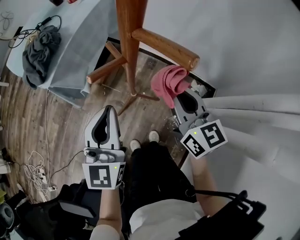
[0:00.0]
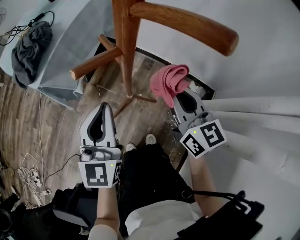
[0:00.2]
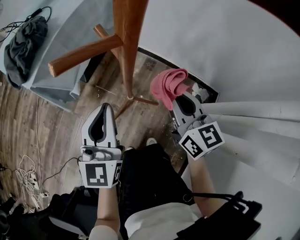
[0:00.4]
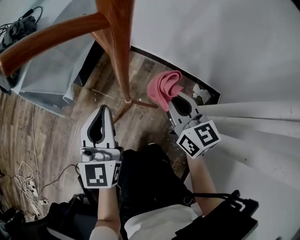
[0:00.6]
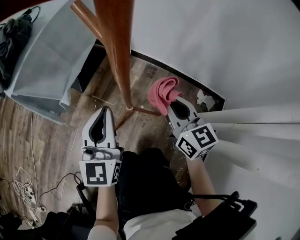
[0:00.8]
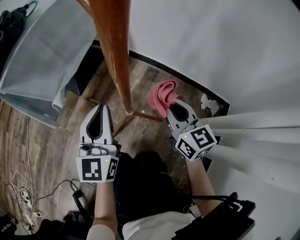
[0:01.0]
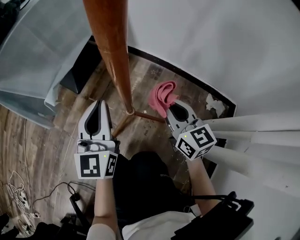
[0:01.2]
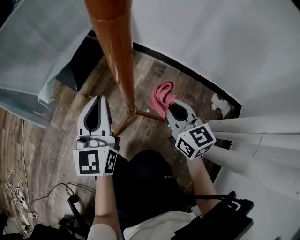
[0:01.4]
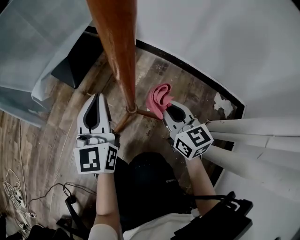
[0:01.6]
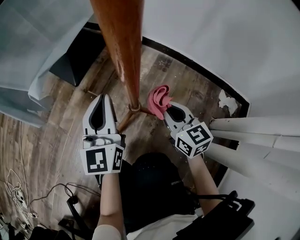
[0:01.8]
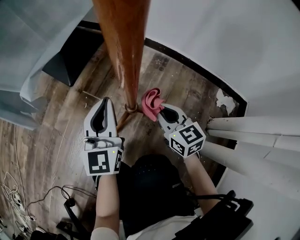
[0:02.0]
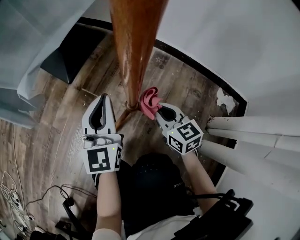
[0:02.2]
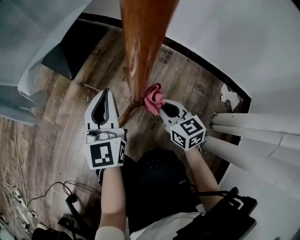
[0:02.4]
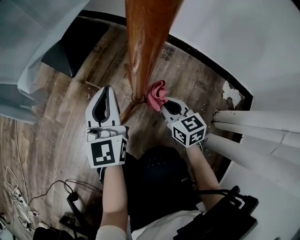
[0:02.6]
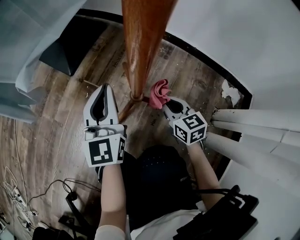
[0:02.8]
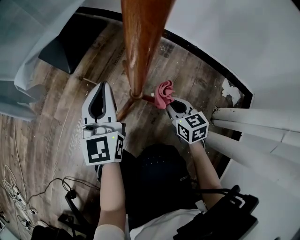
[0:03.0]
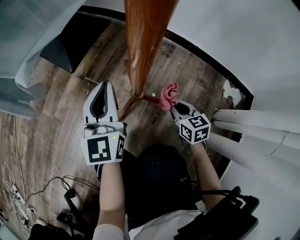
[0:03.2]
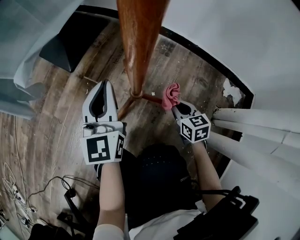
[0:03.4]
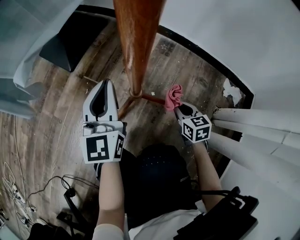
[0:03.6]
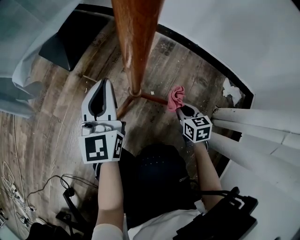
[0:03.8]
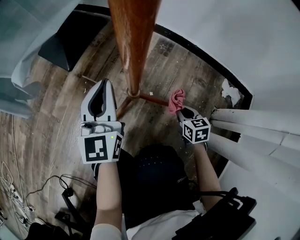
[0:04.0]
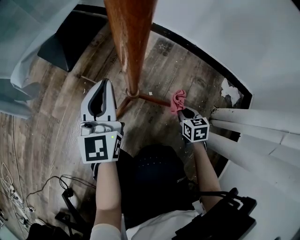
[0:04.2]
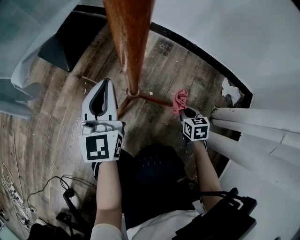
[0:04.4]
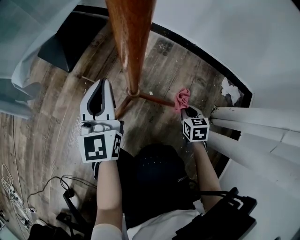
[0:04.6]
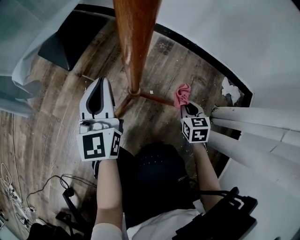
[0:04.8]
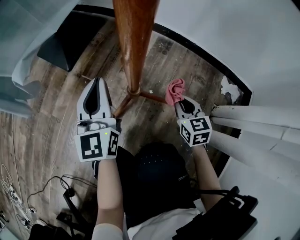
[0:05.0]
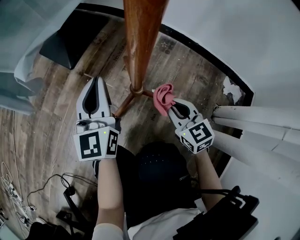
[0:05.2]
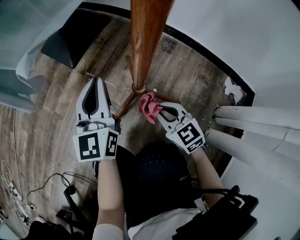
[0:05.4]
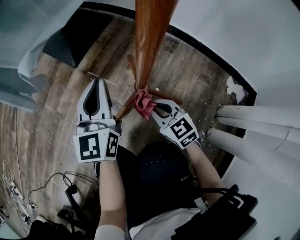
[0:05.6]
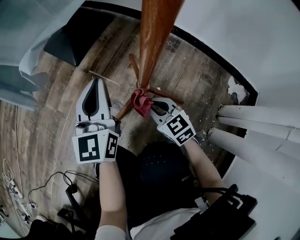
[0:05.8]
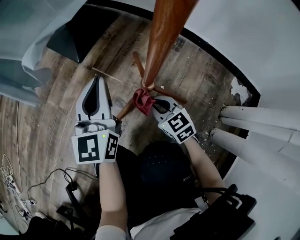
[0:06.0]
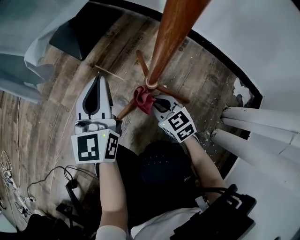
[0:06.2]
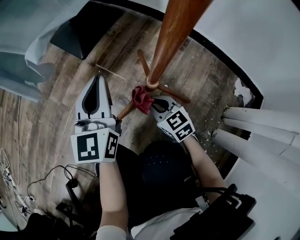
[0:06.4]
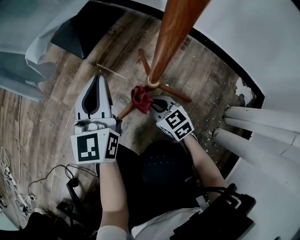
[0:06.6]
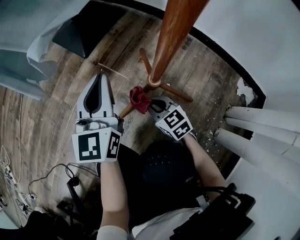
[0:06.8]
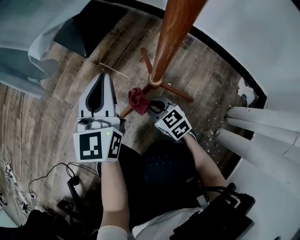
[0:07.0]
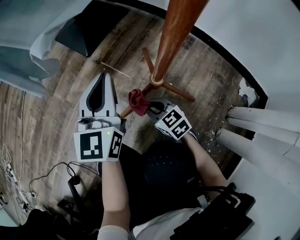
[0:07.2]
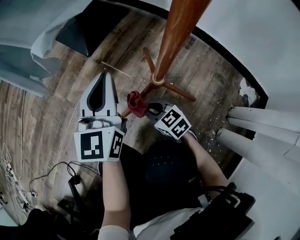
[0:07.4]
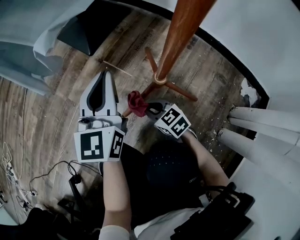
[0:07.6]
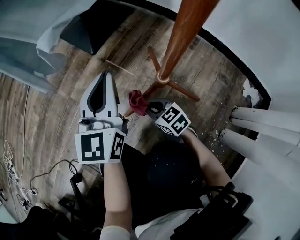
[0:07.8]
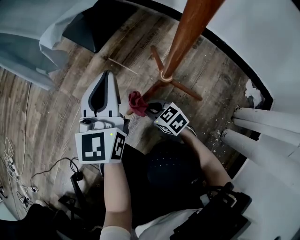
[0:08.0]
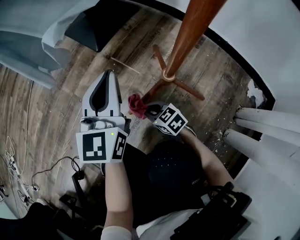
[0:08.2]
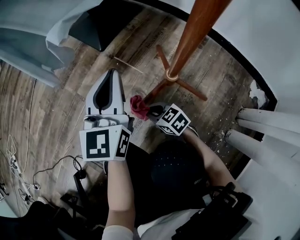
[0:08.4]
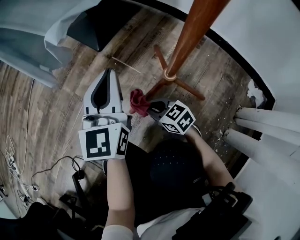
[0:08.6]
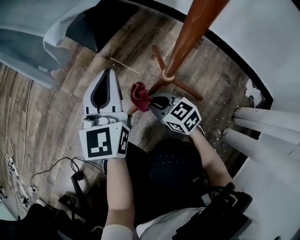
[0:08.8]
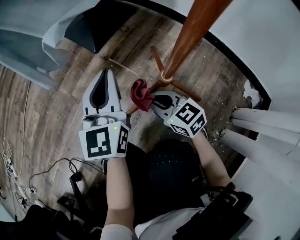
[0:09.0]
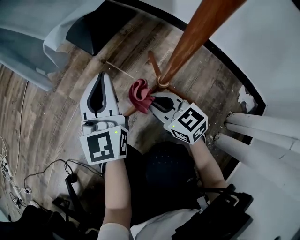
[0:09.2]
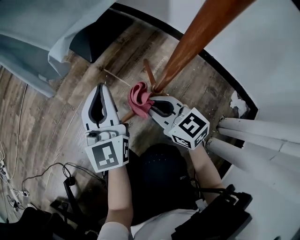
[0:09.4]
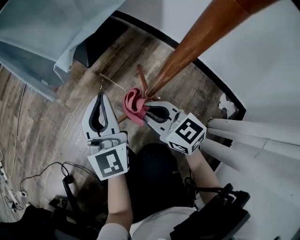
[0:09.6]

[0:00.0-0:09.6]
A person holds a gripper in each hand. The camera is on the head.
0:00.0 to 0:01.6: The grippers both shift downward by approximately 40 cm.
0:01.6 to 0:03.2: The left gripper heads downward, covering roughly 5 cm, while the right gripper travels downward by approximately 20 cm, and changes its angle by about 20 degrees.
0:03.2 to 0:04.8: The right gripper heads to the right, covering some 5 cm.
0:04.8 to 0:06.4: The left gripper travels to the left by approximately 5 cm; the right gripper goes roughly 20 cm to the left, and rotates some 40 degrees.
0:06.4 to 0:08.0: The right gripper is displaced to the left by some 10 cm.
0:08.0 to 0:09.6: The left gripper travels upward by about 5 cm, while the right gripper shifts roughly 25 cm upward.

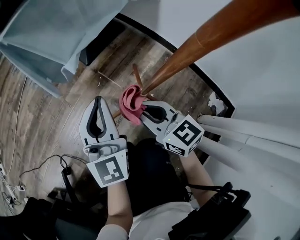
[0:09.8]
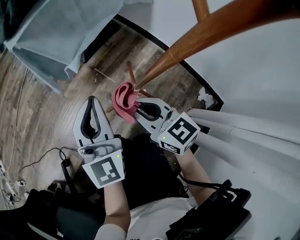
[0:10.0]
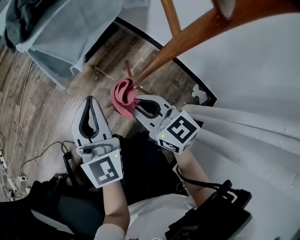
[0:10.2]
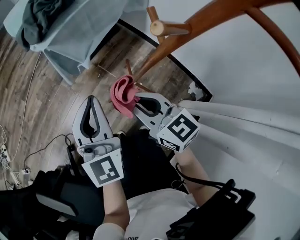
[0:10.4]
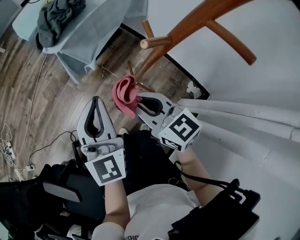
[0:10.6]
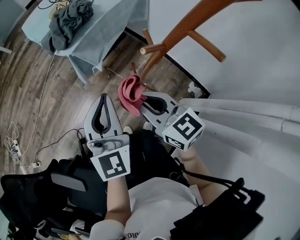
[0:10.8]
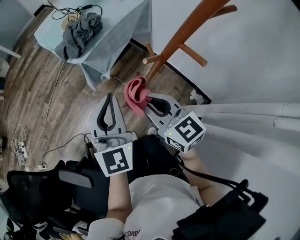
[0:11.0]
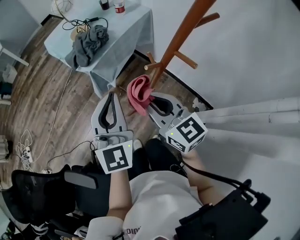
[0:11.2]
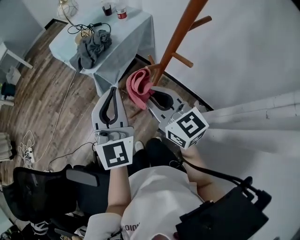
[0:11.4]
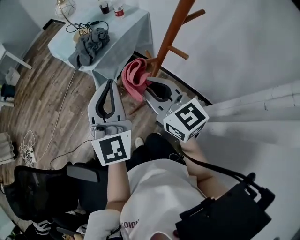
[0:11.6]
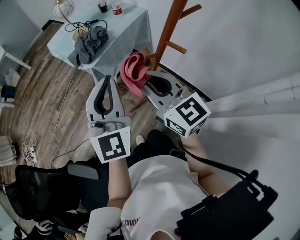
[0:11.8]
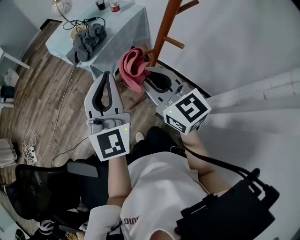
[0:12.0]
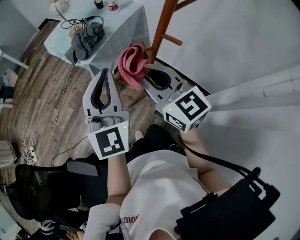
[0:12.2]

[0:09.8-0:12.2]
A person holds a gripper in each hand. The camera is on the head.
0:09.8 to 0:11.0: Both grippers travel together upward, approximately 40 cm.
0:11.0 to 0:12.2: The grippers both shift upward by roughly 15 cm.

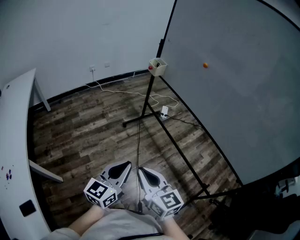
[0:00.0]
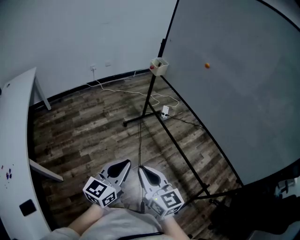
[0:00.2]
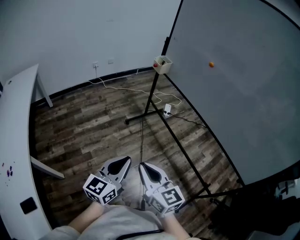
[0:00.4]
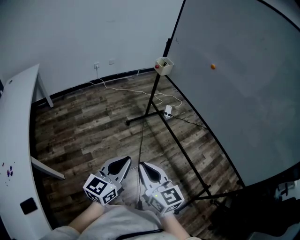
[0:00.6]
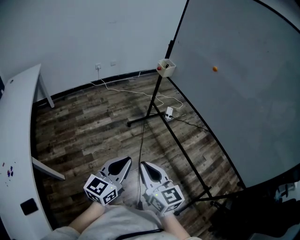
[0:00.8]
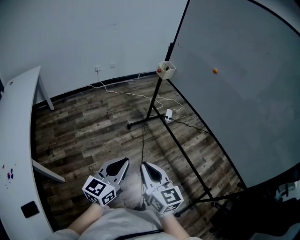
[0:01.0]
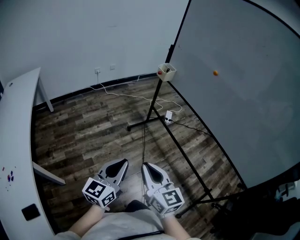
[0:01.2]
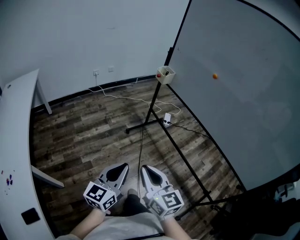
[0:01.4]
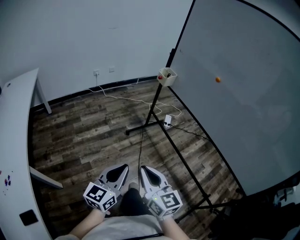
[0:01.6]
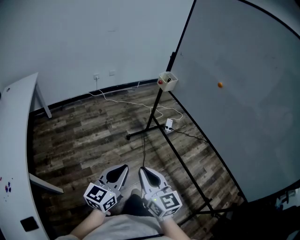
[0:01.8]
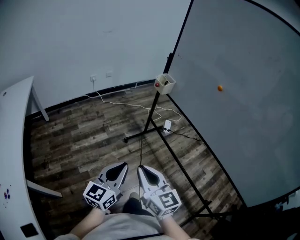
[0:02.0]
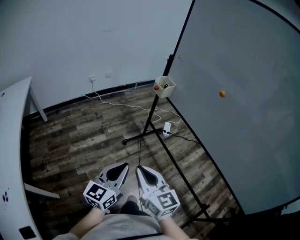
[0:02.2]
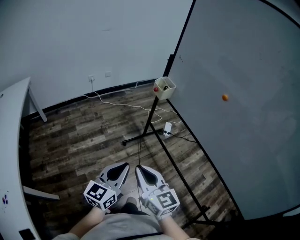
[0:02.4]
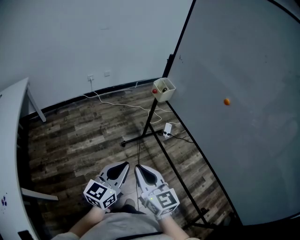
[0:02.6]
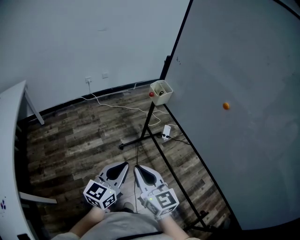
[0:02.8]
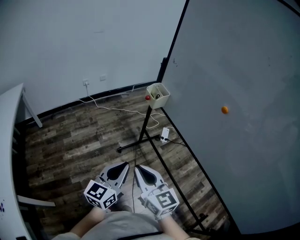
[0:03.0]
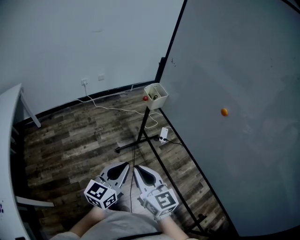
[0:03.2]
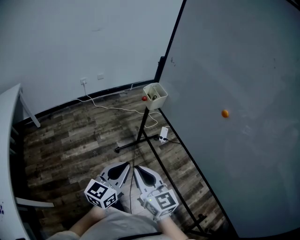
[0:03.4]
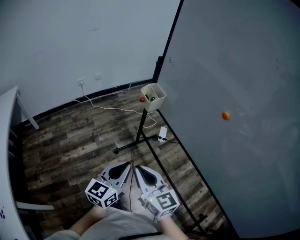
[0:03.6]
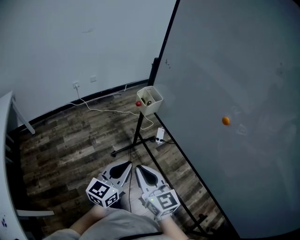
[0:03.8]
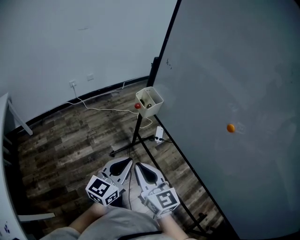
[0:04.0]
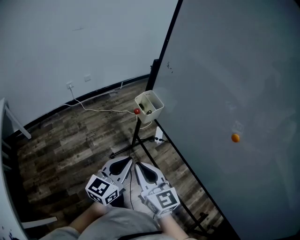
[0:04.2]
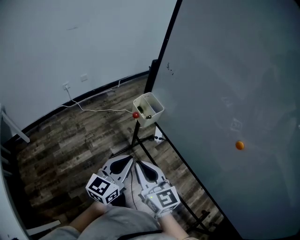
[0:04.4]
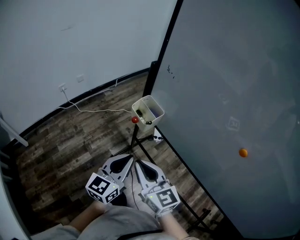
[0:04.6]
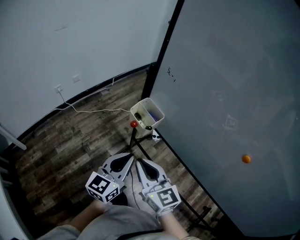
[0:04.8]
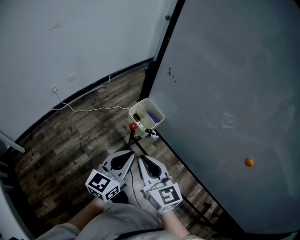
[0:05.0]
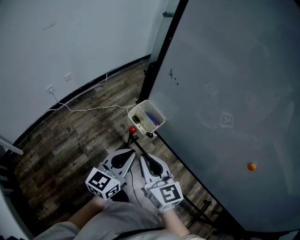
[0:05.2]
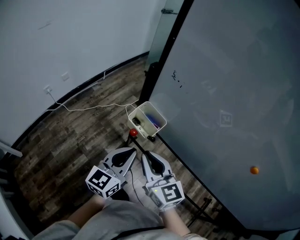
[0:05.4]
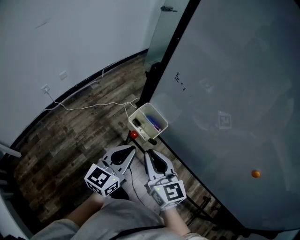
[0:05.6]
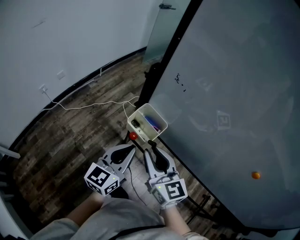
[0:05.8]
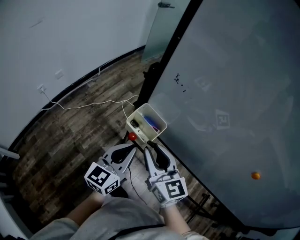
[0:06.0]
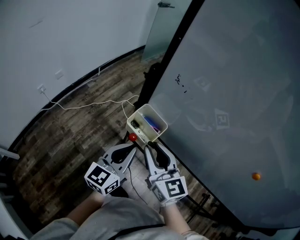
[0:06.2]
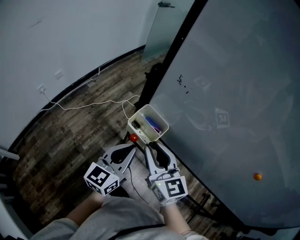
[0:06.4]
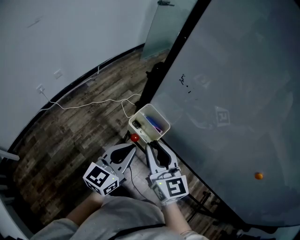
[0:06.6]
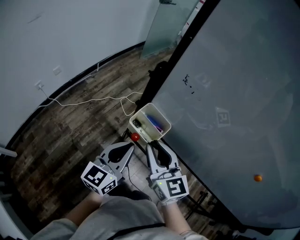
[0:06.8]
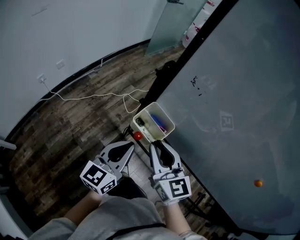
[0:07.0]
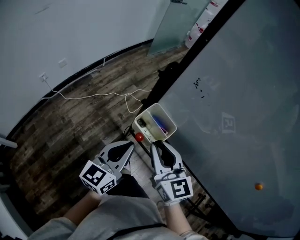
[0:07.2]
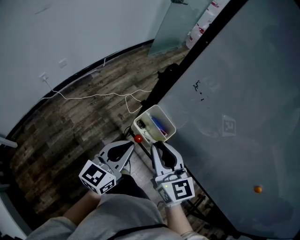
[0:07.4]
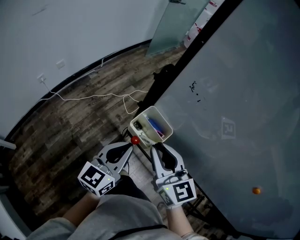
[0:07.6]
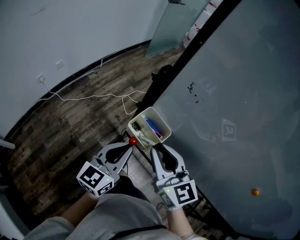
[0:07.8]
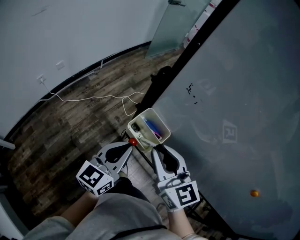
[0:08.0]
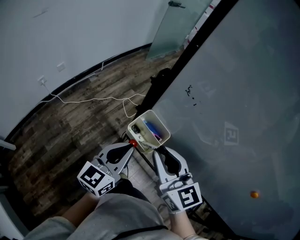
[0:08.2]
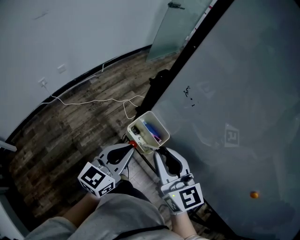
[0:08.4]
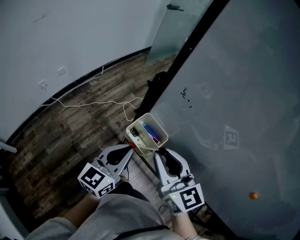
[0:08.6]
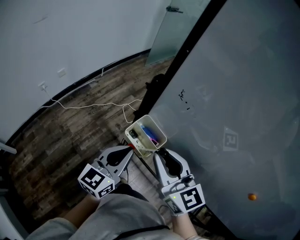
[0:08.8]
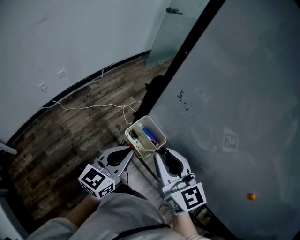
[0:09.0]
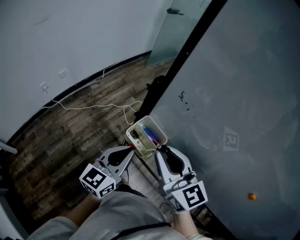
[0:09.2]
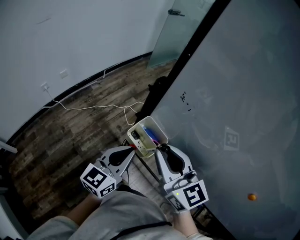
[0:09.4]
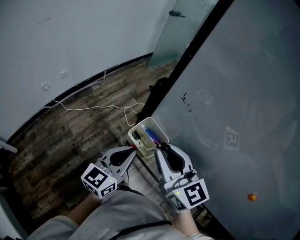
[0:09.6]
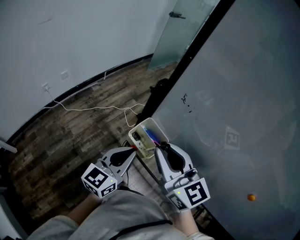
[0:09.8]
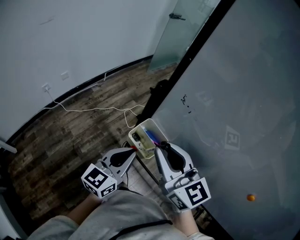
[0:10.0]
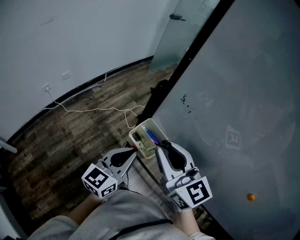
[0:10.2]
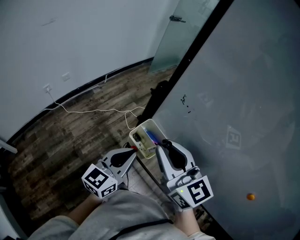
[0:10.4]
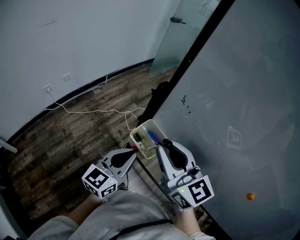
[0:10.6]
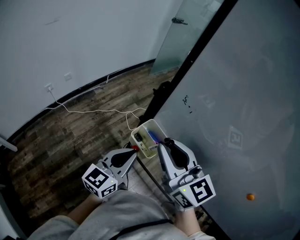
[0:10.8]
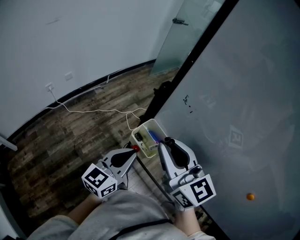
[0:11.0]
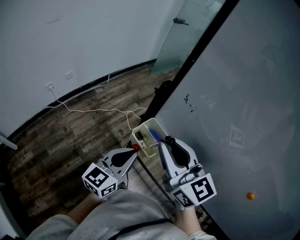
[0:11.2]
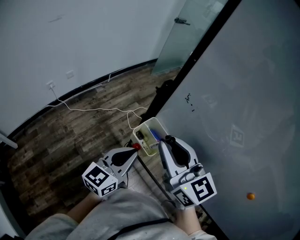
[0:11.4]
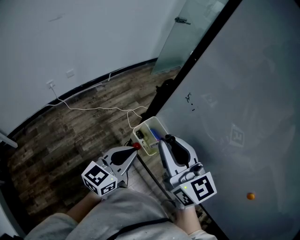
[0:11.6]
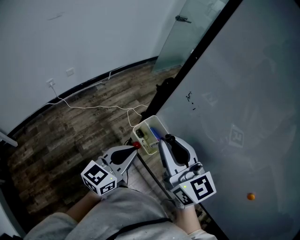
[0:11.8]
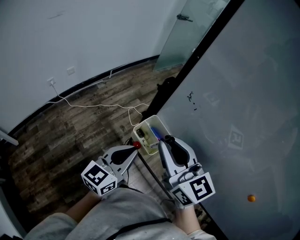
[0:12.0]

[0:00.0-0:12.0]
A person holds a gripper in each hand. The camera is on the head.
0:00.0 to 0:01.6: The right gripper moves forward and to the left, some 10 cm. Meanwhile the left gripper moves to the left and forward, approximately 10 cm.
0:01.6 to 0:03.0: The grippers both shift forward by some 30 cm.
0:03.0 to 0:04.4: The grippers both shift forward by about 25 cm.
0:04.4 to 0:06.0: Both grippers travel together forward, some 20 cm.
0:06.0 to 0:07.6: The grippers make only small movements.
0:07.6 to 0:09.0: The grippers make only small movements.
0:09.0 to 0:10.4: The grippers make only small movements.
0:10.4 to 0:12.0: The grippers stay close to where they were, moving slightly.
